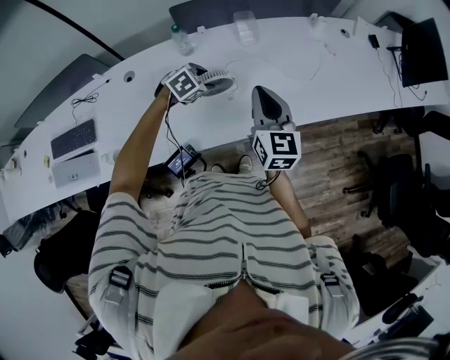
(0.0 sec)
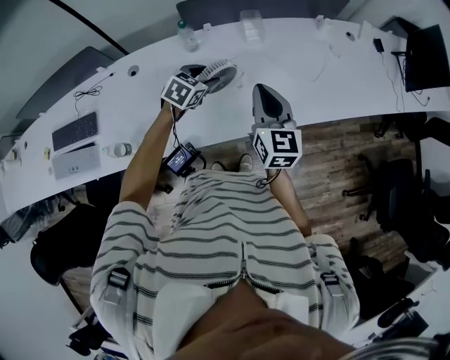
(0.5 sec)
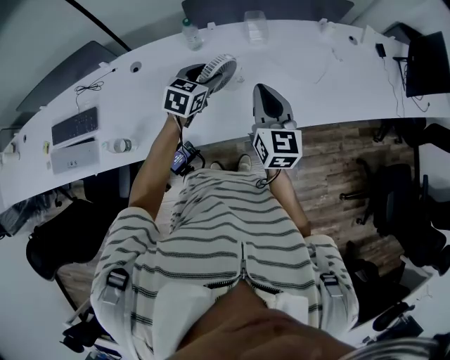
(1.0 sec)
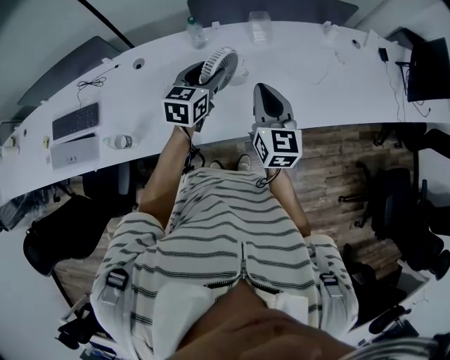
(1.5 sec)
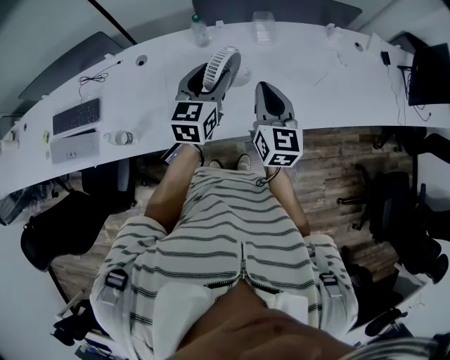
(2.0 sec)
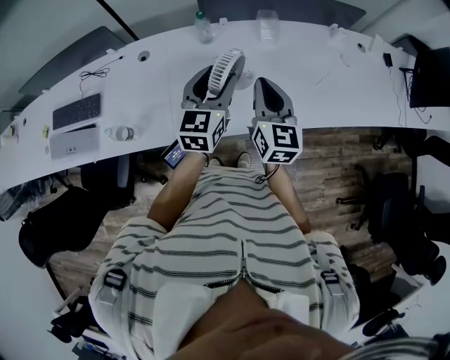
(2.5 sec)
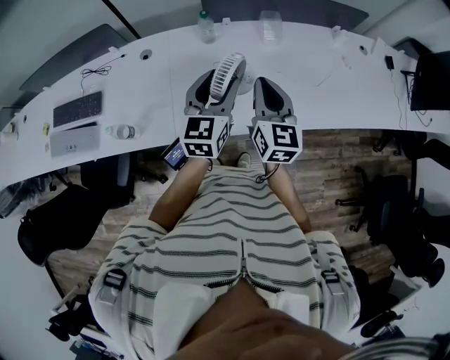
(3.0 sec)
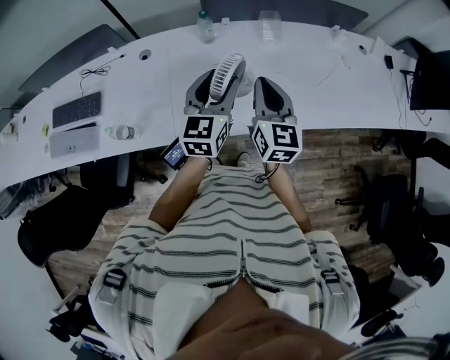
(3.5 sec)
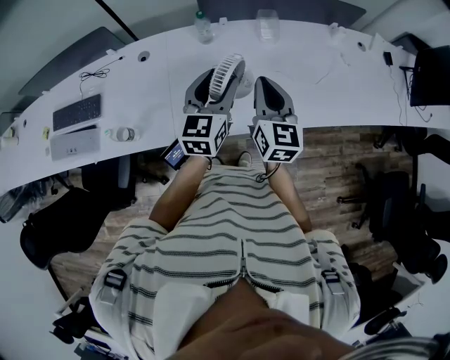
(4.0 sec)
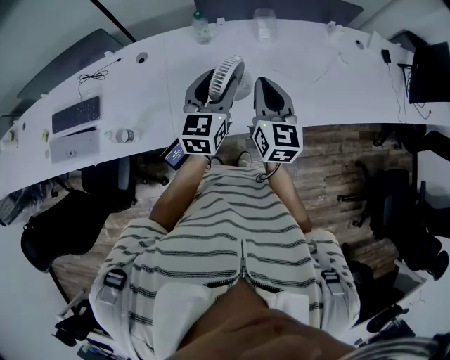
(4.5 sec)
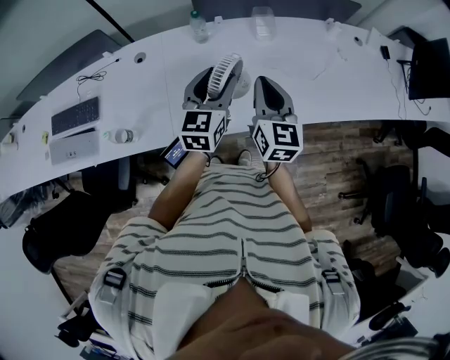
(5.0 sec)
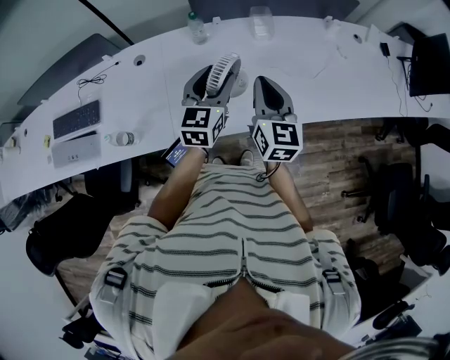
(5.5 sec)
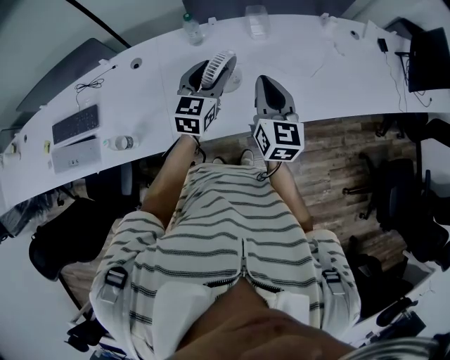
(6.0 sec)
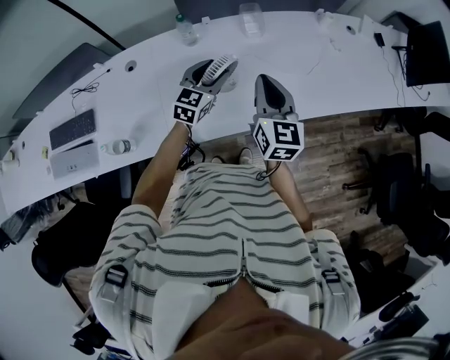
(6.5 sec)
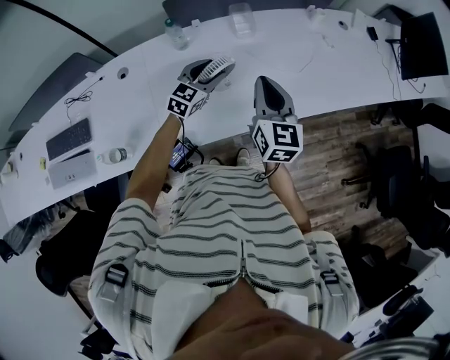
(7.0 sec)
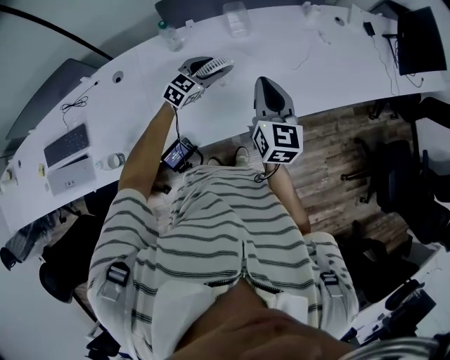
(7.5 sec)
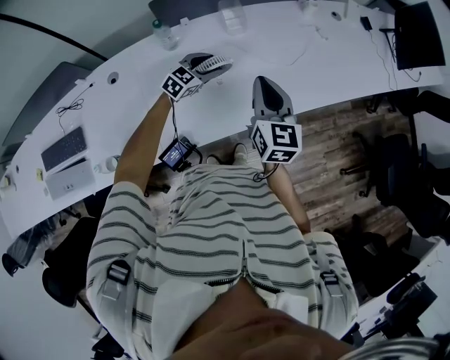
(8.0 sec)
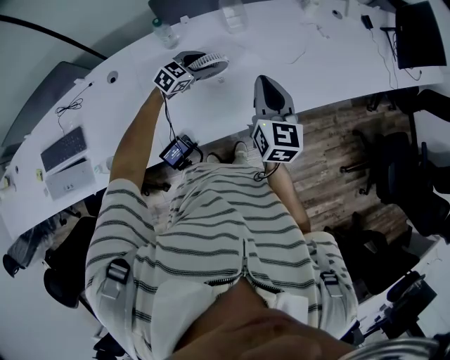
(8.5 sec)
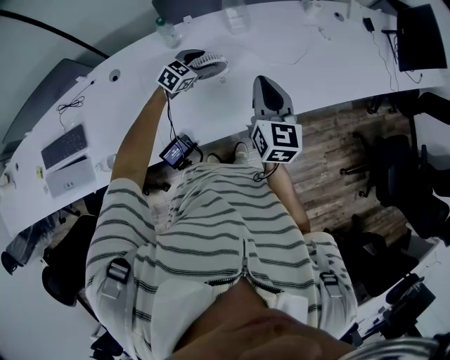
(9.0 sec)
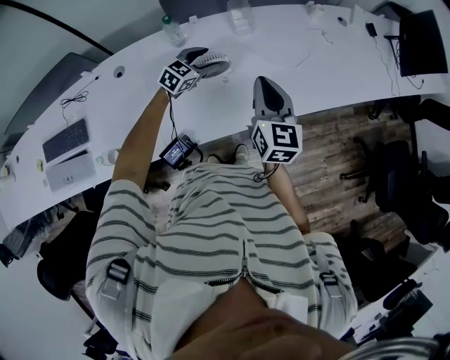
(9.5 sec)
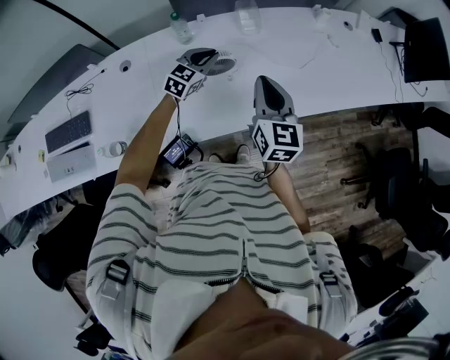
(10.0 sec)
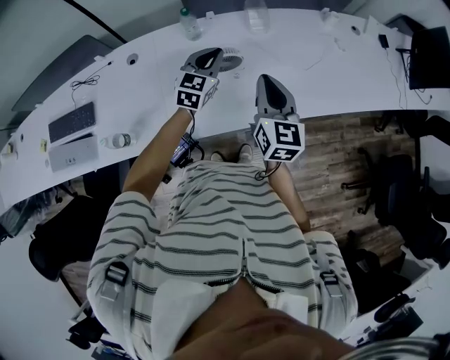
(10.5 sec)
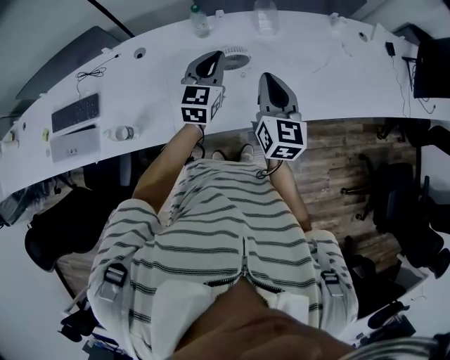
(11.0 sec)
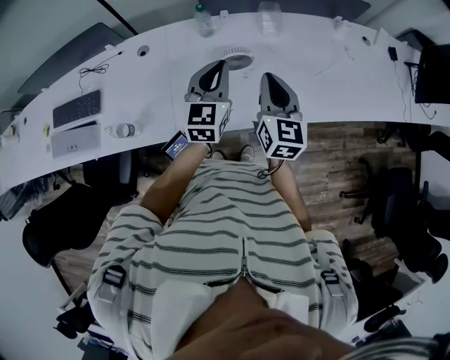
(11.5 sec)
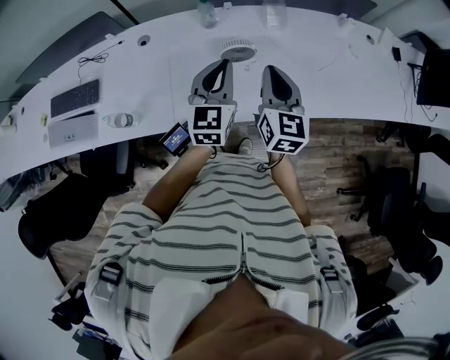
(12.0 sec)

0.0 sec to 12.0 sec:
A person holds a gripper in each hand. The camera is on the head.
0.0 sec to 2.0 sec: The left gripper shifts some 20 cm upward, and angles its fingers upward, by roughly 50 degrees.
2.0 sec to 4.0 sec: The grippers move only a little.
4.0 sec to 6.0 sec: The left gripper changes place by roughly 5 cm.
6.0 sec to 8.0 sec: The left gripper heads downward and forward, covering some 20 cm, and rotates approximately 40 degrees, while the right gripper changes place by roughly 5 cm.
8.0 sec to 10.0 sec: The left gripper travels upward by approximately 5 cm, and closes up.
10.0 sec to 12.0 sec: The left gripper is displaced backward and upward by approximately 20 cm, and changes its angle by approximately 40 degrees.

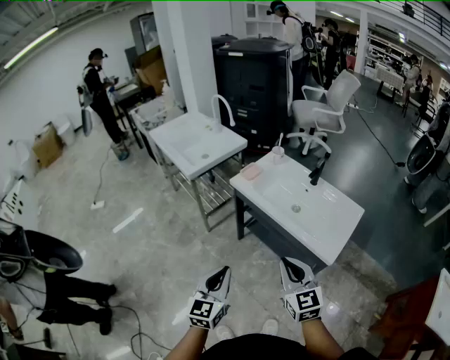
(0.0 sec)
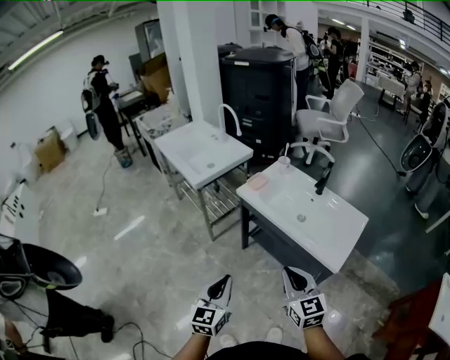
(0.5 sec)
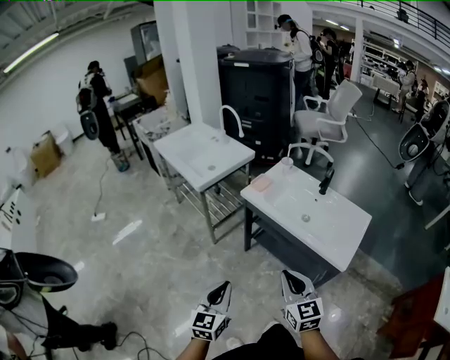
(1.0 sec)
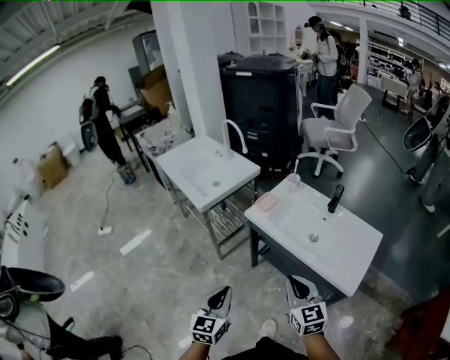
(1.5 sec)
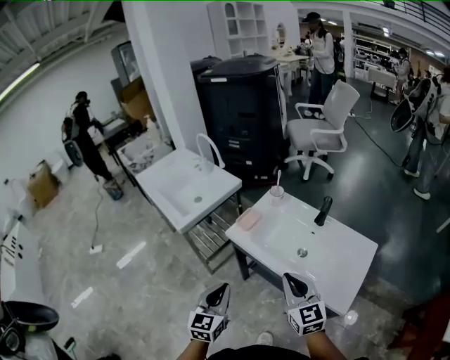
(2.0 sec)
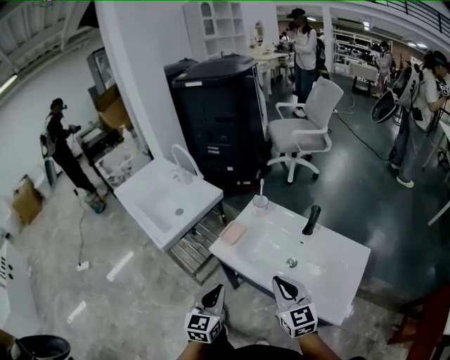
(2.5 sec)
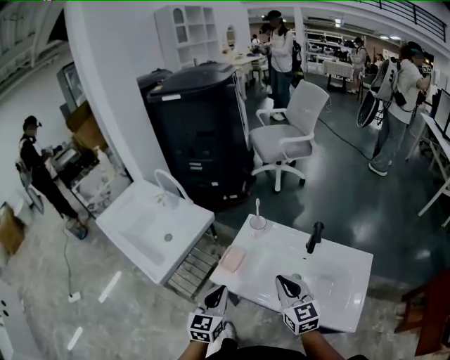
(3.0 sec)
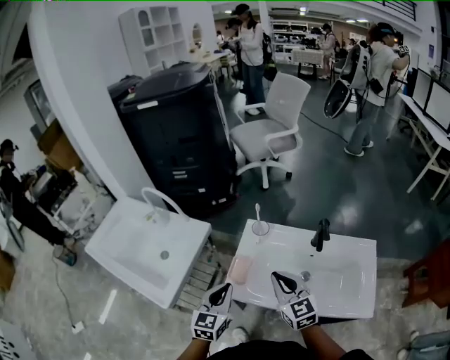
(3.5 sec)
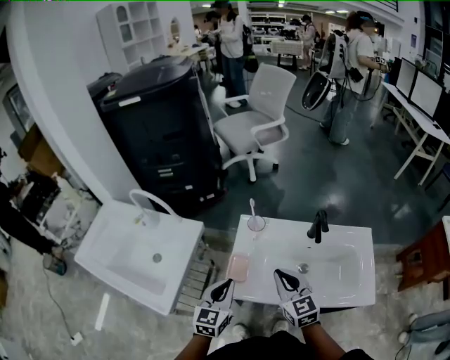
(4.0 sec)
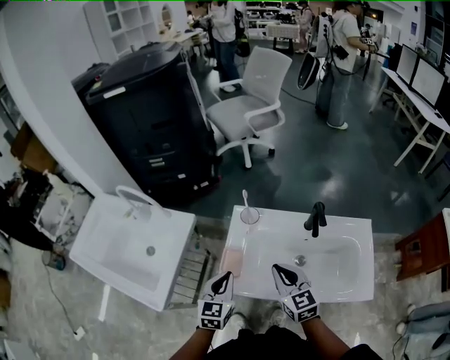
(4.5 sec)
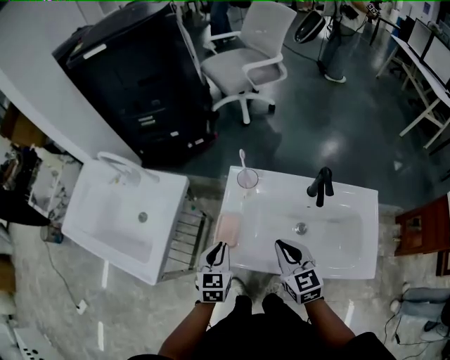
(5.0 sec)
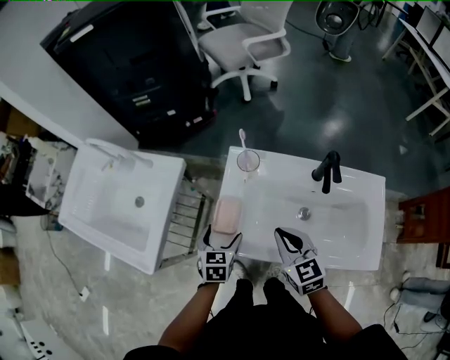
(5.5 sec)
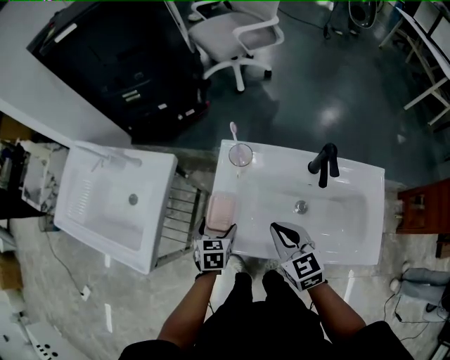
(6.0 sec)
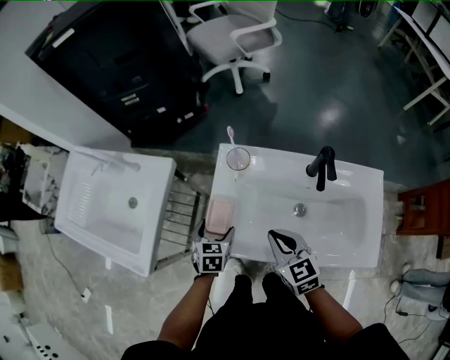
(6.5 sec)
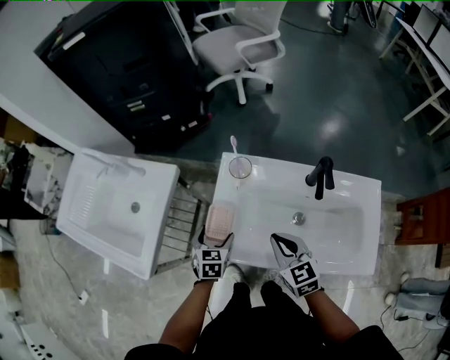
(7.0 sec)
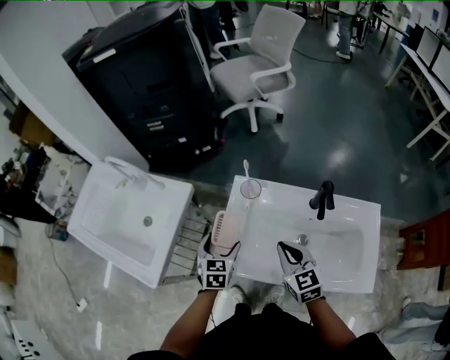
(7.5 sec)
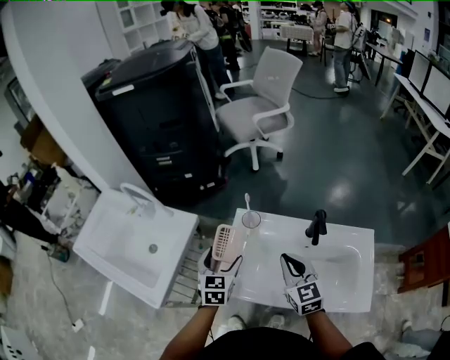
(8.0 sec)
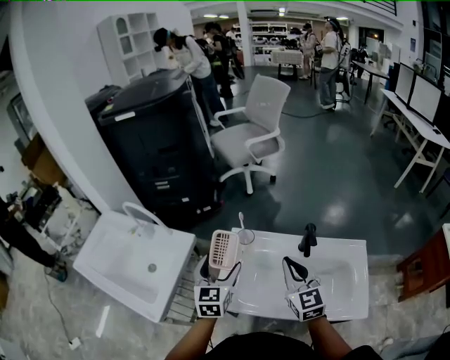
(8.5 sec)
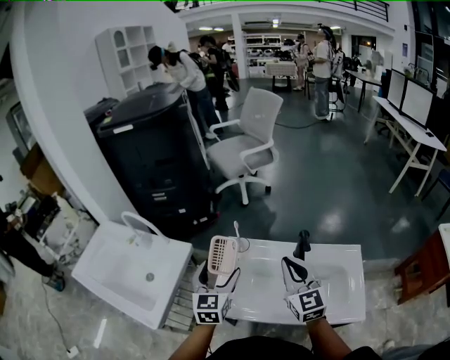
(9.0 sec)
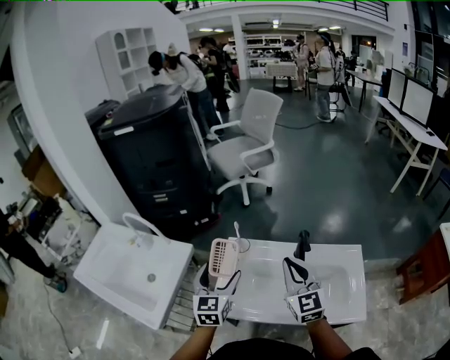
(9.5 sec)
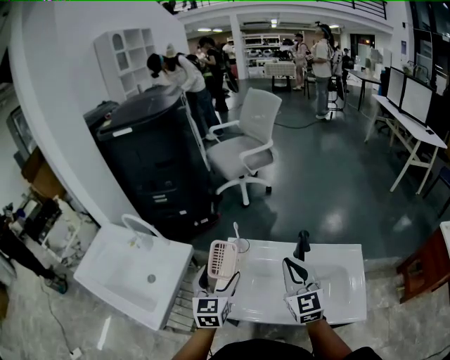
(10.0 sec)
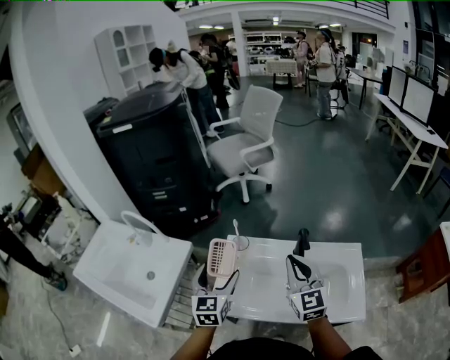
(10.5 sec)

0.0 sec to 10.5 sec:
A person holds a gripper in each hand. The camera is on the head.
0.0 sec to 2.0 sec: The grippers both shift forward by approximately 20 cm.
2.0 sec to 4.0 sec: The left gripper shifts by about 30 cm, and swivels roughly 30 degrees, while the right gripper changes place by about 25 cm, and swivels about 30 degrees.
4.0 sec to 6.5 sec: The left gripper is displaced downward by roughly 15 cm, tilts its fingers roughly 30 degrees downward, and opens up; the right gripper is displaced downward by approximately 10 cm.
6.5 sec to 8.5 sec: The right gripper shifts some 15 cm upward, and swivels roughly 30 degrees. The left gripper moves upward, roughly 25 cm, and points its fingers about 30 degrees further upward.
8.5 sec to 10.5 sec: The grippers move only a little.

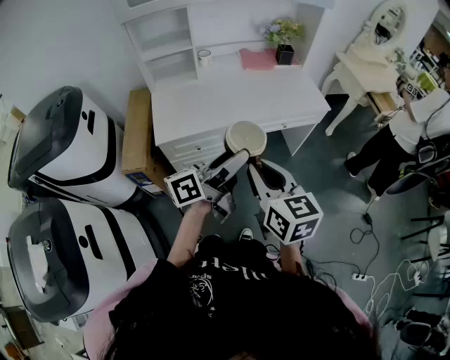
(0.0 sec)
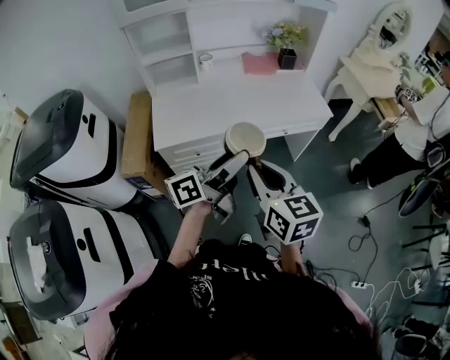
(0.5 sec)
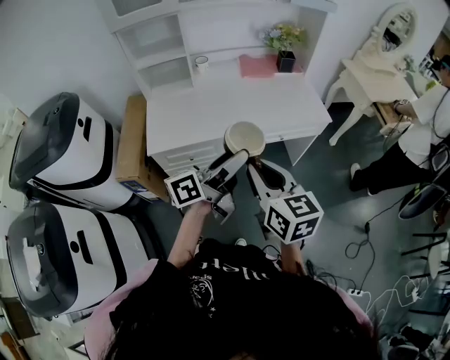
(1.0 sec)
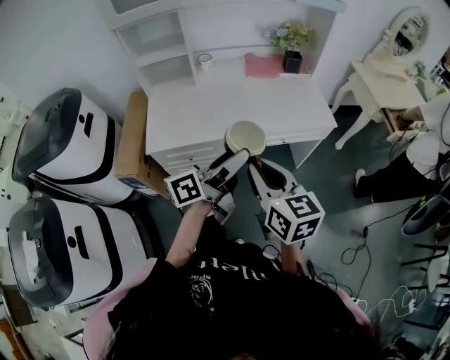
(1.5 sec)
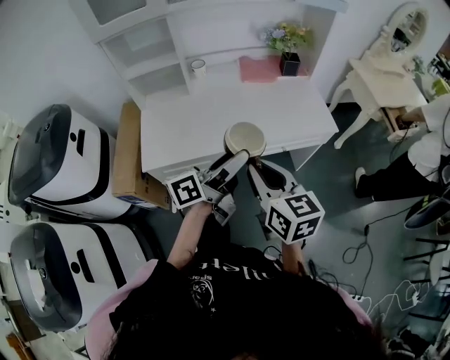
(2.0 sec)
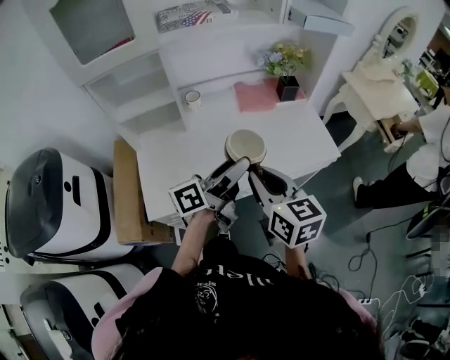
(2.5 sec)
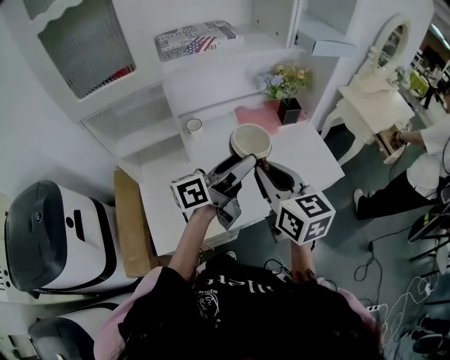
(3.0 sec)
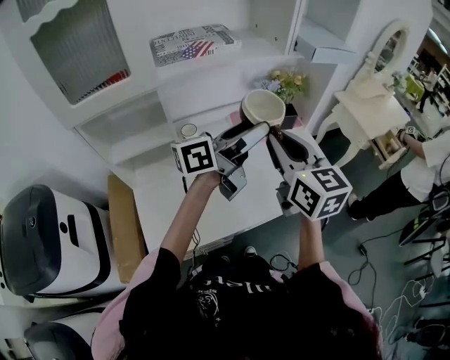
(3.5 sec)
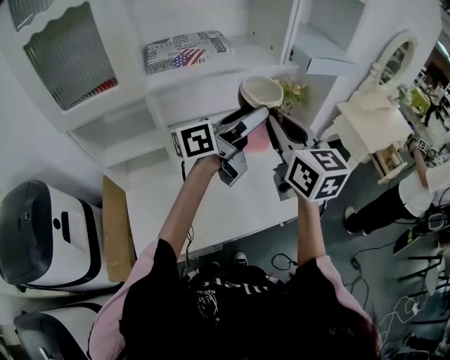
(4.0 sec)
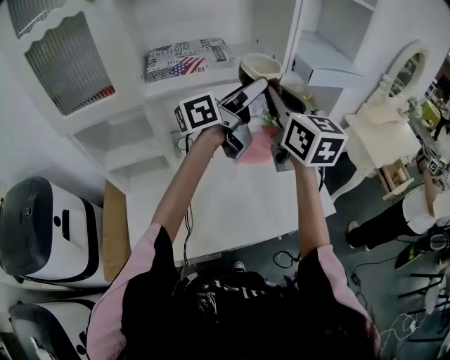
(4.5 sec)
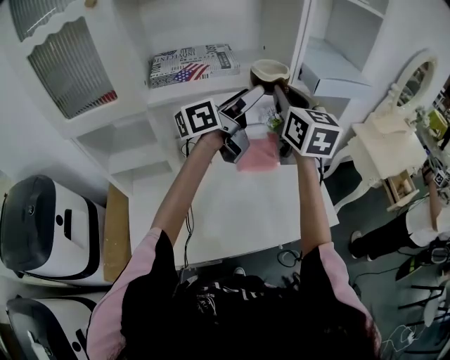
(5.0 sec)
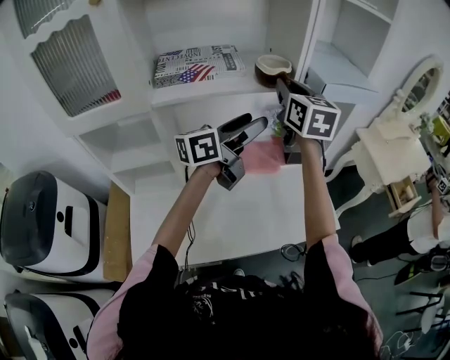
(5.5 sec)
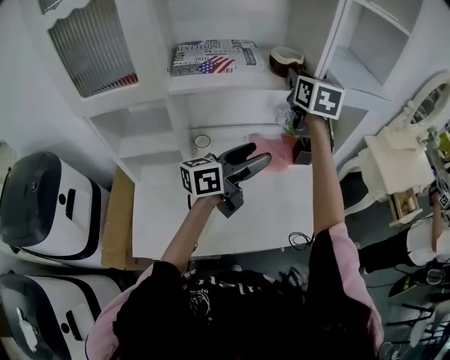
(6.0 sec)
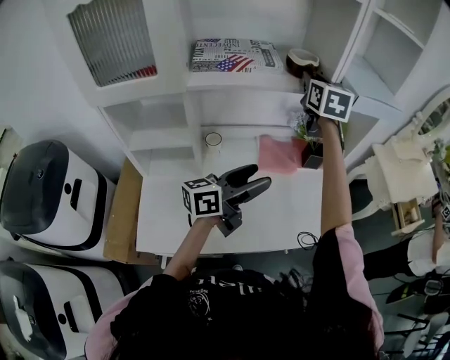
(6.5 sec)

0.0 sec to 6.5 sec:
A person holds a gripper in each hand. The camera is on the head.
0.0 sec to 2.0 sec: The grippers both shift forward by about 20 cm.
2.0 sec to 4.5 sec: Both grippers are carried forward, approximately 50 cm. The grippers both shift upward by roughly 20 cm. The right gripper rotates approximately 20 degrees.
4.5 sec to 6.5 sec: The right gripper travels forward by some 15 cm; the left gripper is displaced downward and backward by roughly 20 cm.
